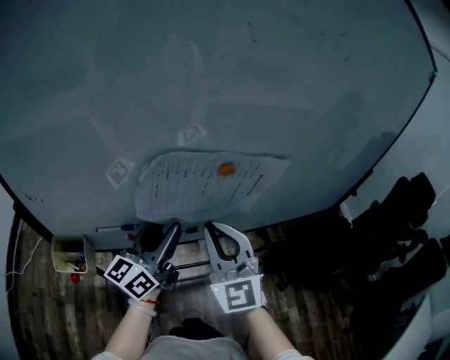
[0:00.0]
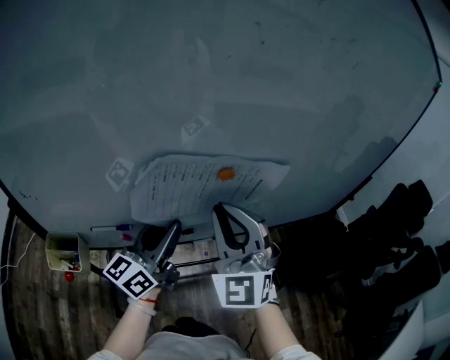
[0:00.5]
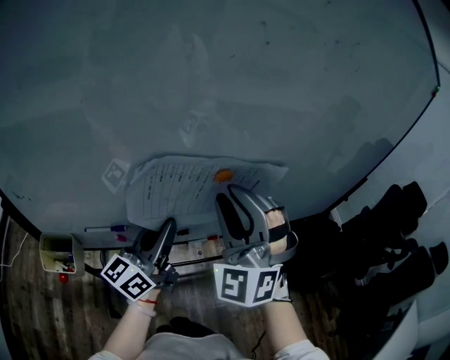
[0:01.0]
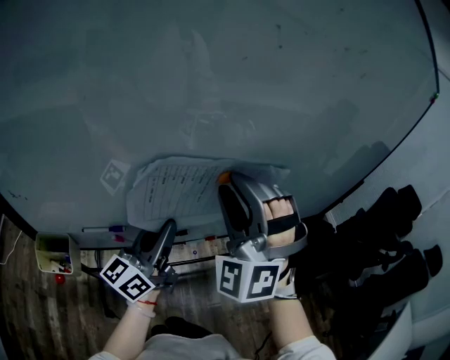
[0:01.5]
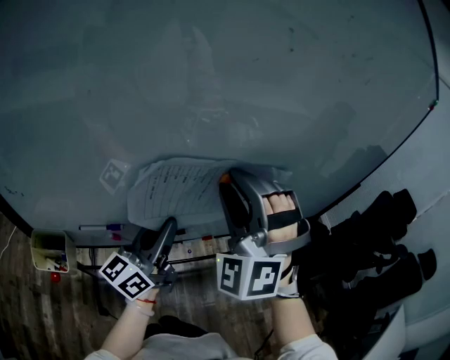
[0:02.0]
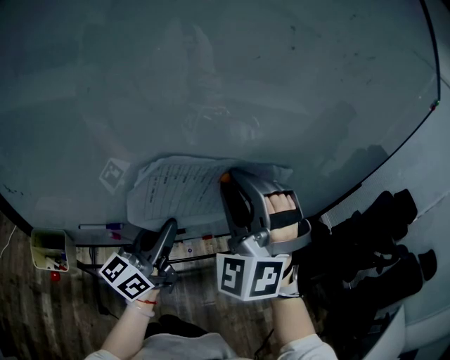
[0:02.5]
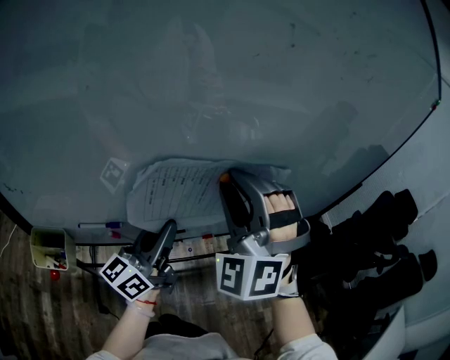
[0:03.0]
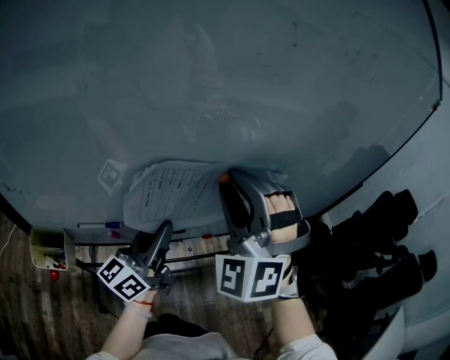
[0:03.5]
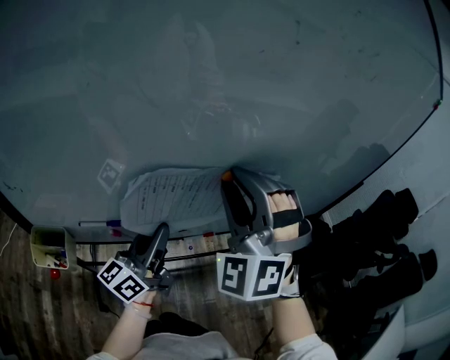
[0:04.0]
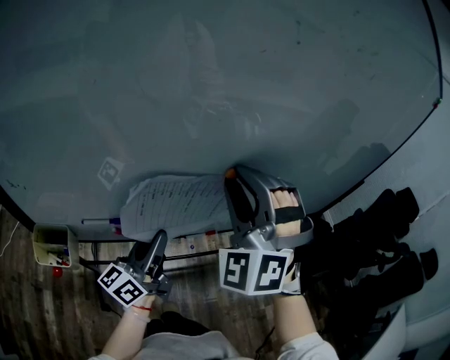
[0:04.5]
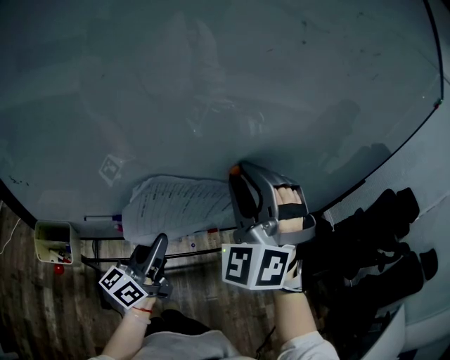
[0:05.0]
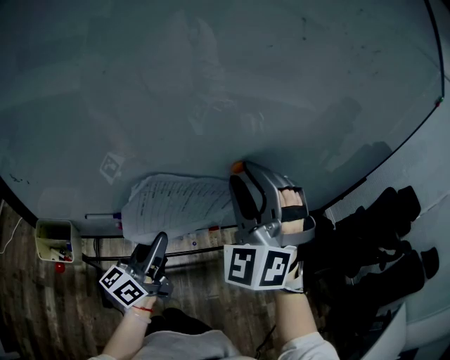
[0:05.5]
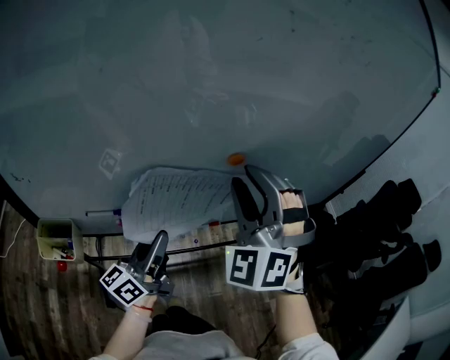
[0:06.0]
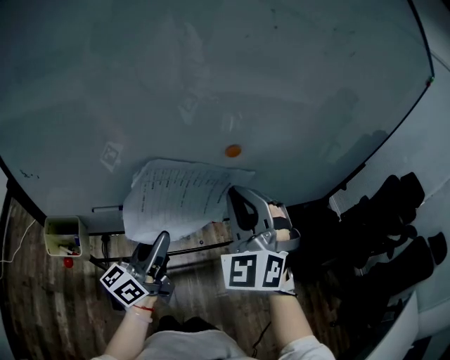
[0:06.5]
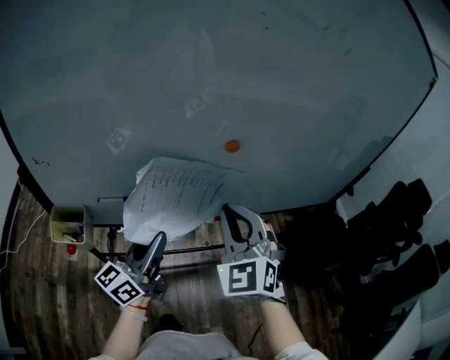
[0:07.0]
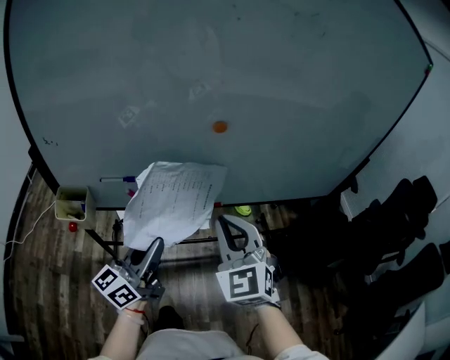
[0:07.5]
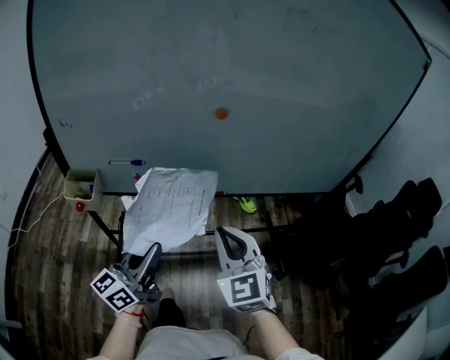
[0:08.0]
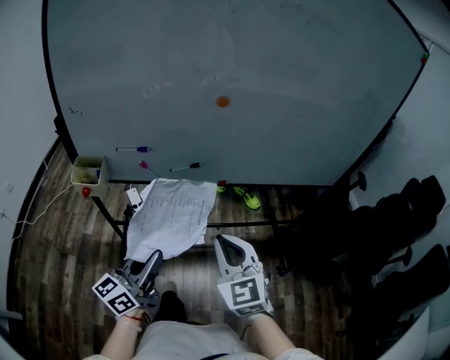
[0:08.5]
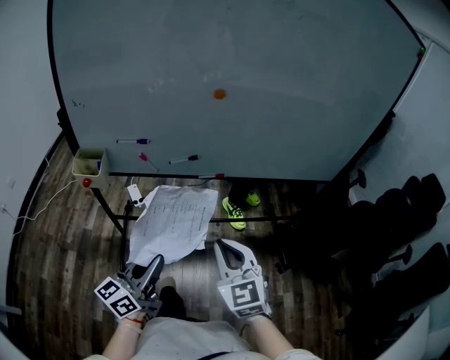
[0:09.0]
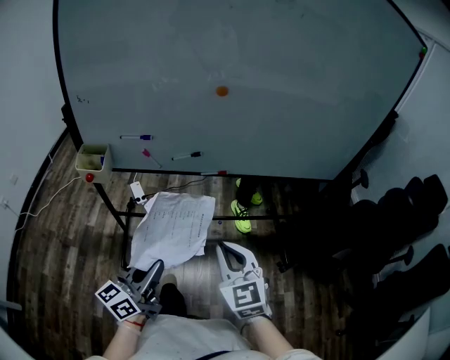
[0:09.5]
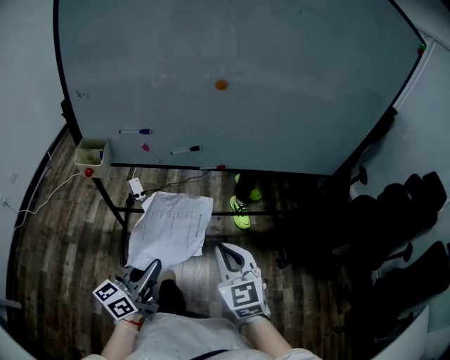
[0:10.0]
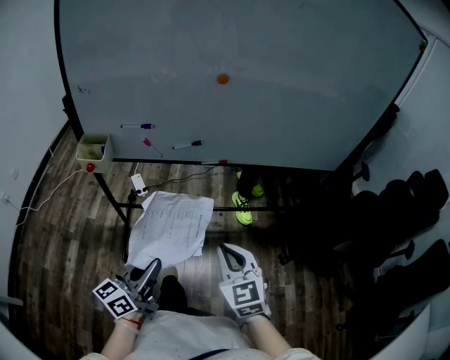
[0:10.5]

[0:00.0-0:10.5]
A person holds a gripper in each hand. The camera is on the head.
0:00.0 to 0:02.0: The right gripper travels upward and forward by about 10 cm, rotates around the line of its fingers by roughly 50 degrees, counterclockwise from behind, and opens; the left gripper closes its fingers.
0:02.0 to 0:04.0: There are only small adjustments of the grippers.
0:04.0 to 0:06.5: The left gripper travels backward by roughly 5 cm; the right gripper shifts by about 5 cm, and closes its fingers.
0:06.5 to 0:08.5: The left gripper moves backward, some 25 cm. Meanwhile the right gripper goes about 25 cm backward and downward, and swivels about 40 degrees.
0:08.5 to 0:10.5: Both grippers travel together backward and downward, some 10 cm.

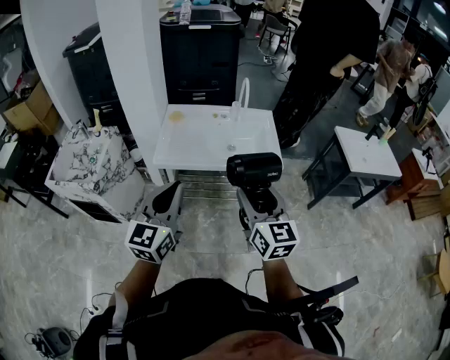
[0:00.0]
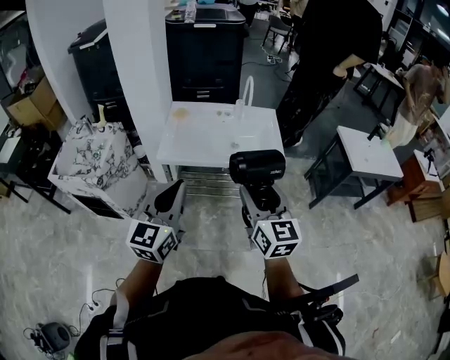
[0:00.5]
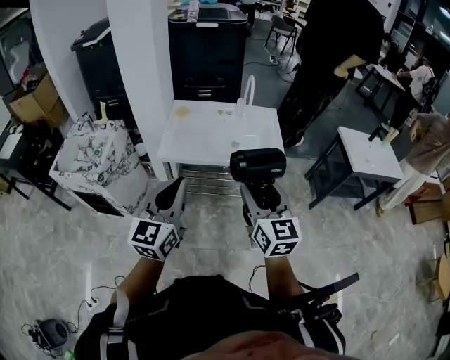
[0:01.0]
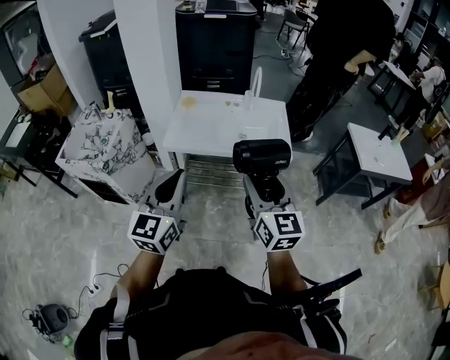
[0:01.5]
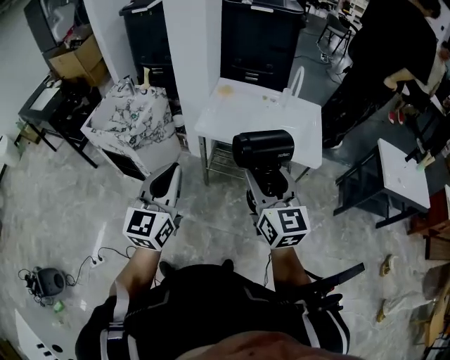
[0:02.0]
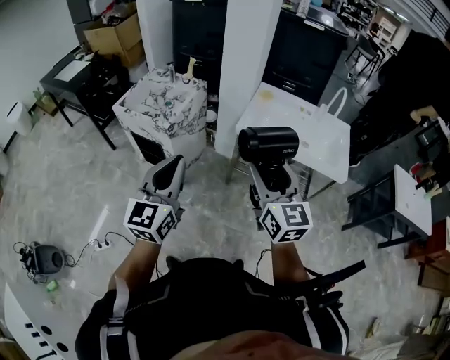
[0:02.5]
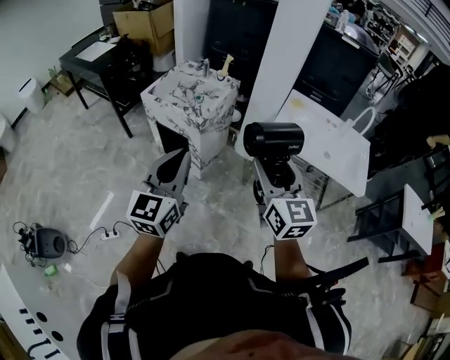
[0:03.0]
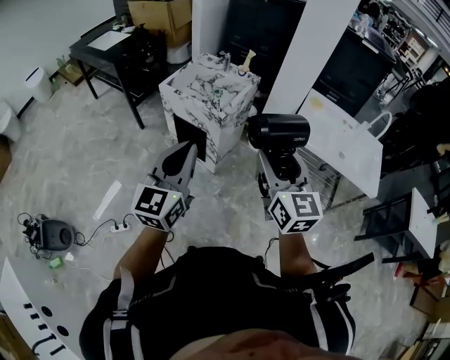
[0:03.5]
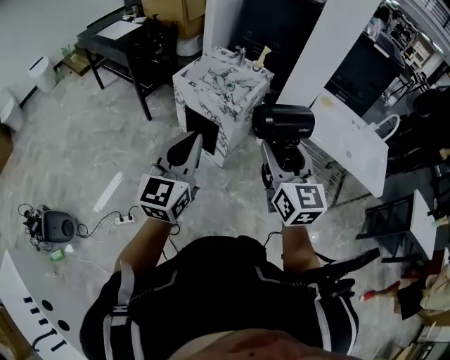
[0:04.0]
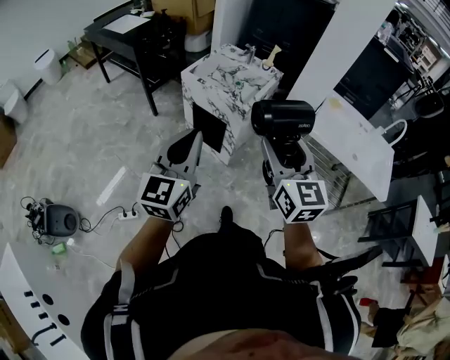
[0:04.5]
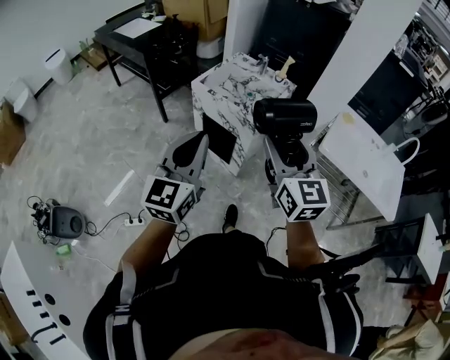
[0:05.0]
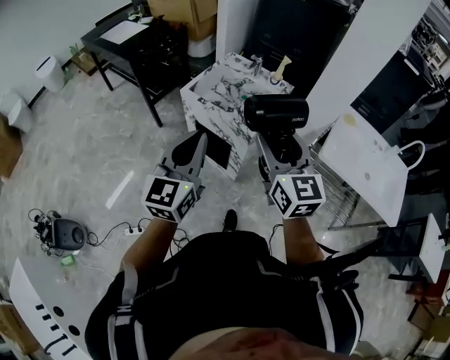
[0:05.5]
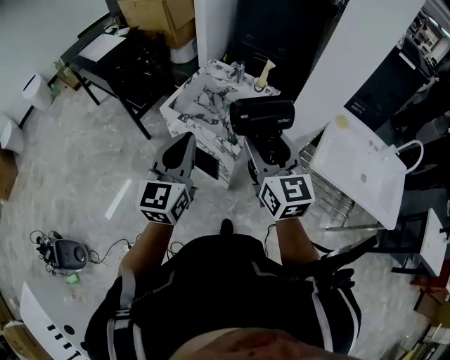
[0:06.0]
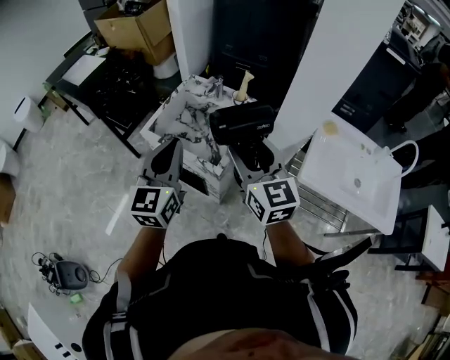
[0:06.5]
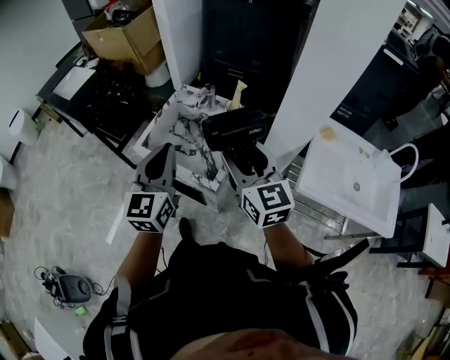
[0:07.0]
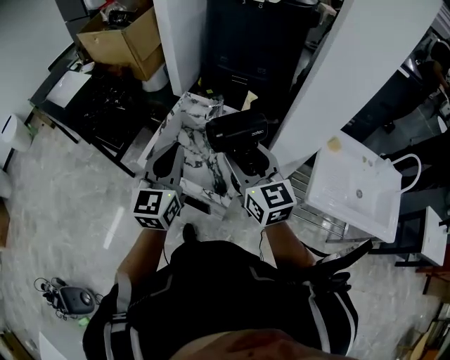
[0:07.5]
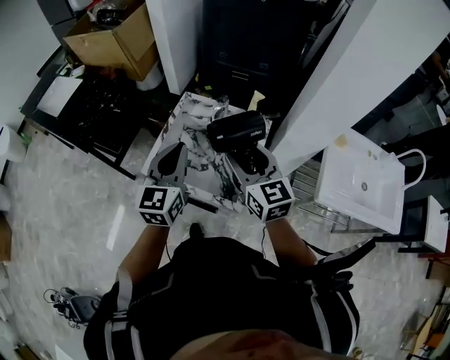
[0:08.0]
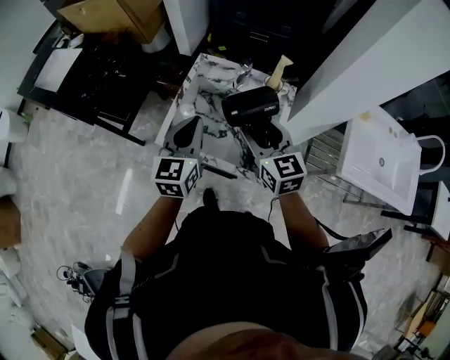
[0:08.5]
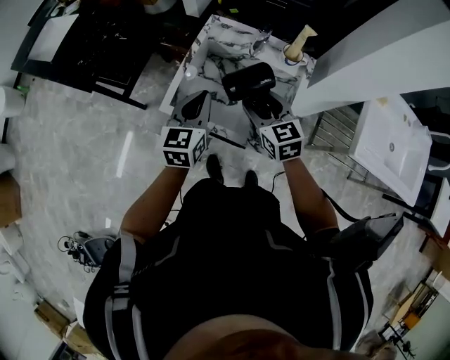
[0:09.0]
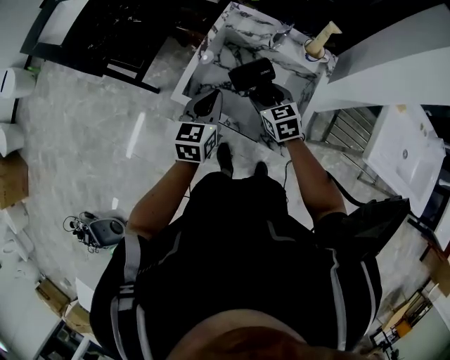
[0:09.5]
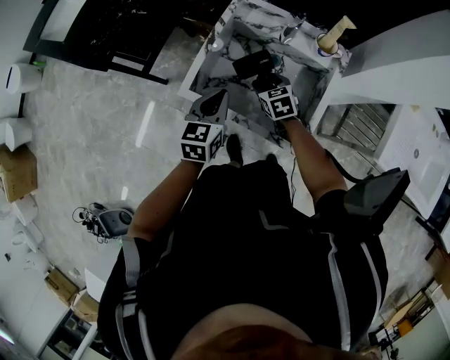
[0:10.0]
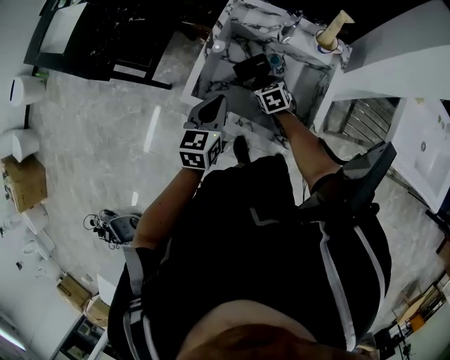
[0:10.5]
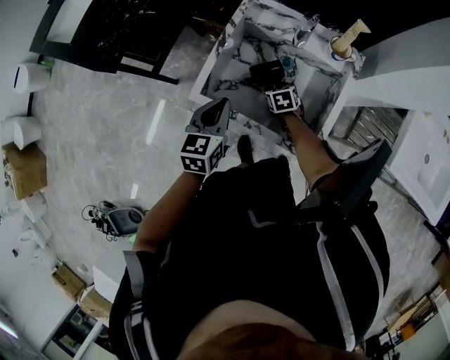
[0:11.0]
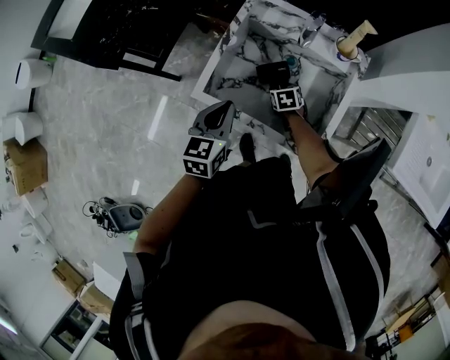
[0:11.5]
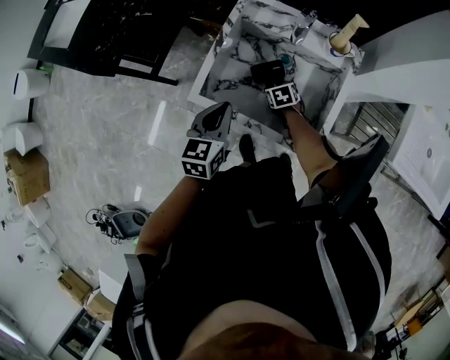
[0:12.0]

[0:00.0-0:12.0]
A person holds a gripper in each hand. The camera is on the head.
0:00.0 to 0:02.0: The right gripper travels to the left by roughly 5 cm; the left gripper heads to the left and backward, covering some 10 cm.
0:02.0 to 0:04.0: The two grippers travel together, to the left, approximately 40 cm.
0:04.0 to 0:06.0: Both grippers travel together forward, about 25 cm.
0:06.0 to 0:08.0: The grippers both shift forward by approximately 25 cm.
0:08.0 to 0:10.0: The right gripper shifts approximately 35 cm downward, and tilts its fingers roughly 40 degrees downward; the left gripper goes roughly 20 cm downward, and changes its angle by approximately 30 degrees.
0:10.0 to 0:12.0: The right gripper heads downward, covering some 15 cm.

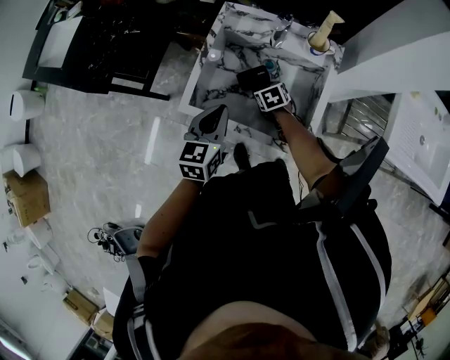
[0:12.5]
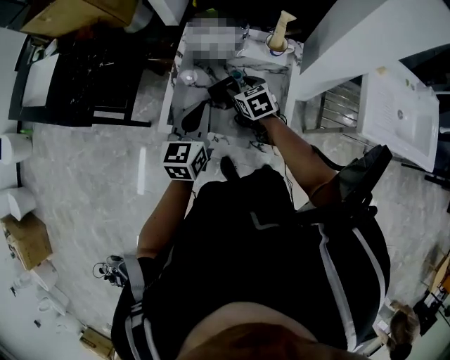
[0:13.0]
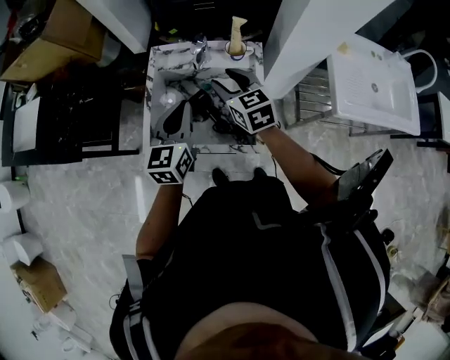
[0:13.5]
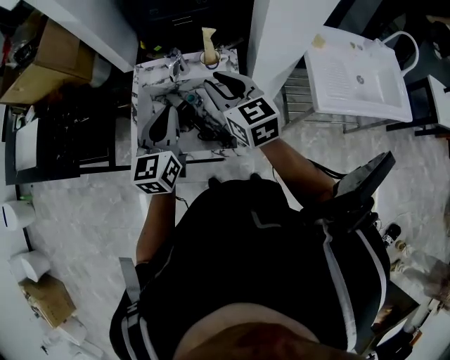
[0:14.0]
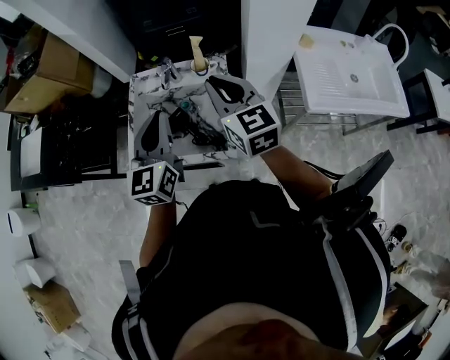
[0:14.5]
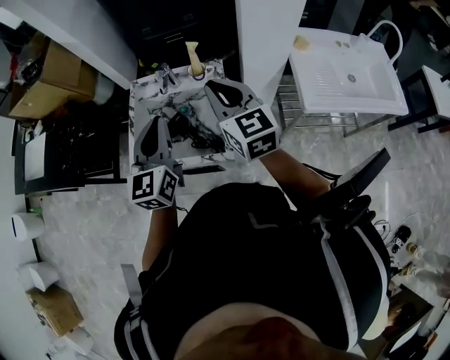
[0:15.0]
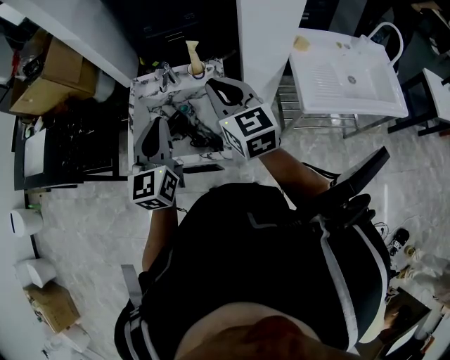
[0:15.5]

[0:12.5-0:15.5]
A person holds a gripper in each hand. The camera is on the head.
0:12.5 to 0:14.0: The left gripper travels upward and to the right by roughly 20 cm, and rotates some 20 degrees, while the right gripper moves upward, about 40 cm, tilts its fingers some 50 degrees upward, and closes its fingers.
0:14.0 to 0:15.5: The left gripper goes approximately 5 cm backward. The right gripper shifts some 10 cm to the right, upward and backward.

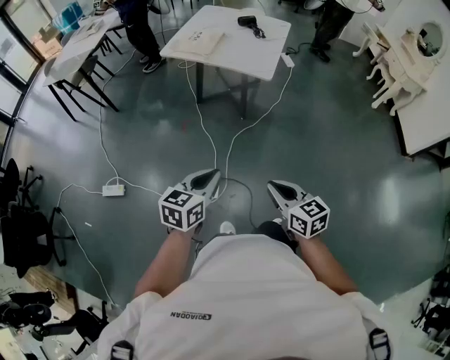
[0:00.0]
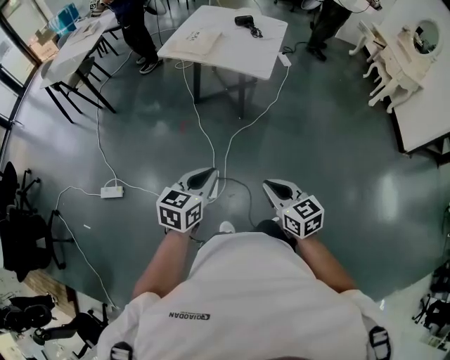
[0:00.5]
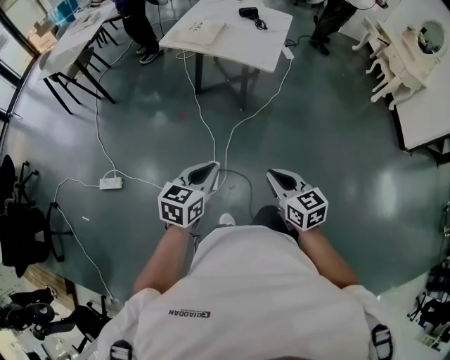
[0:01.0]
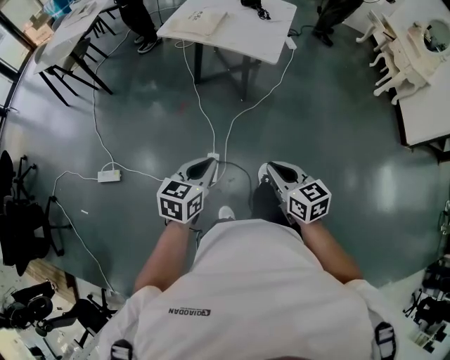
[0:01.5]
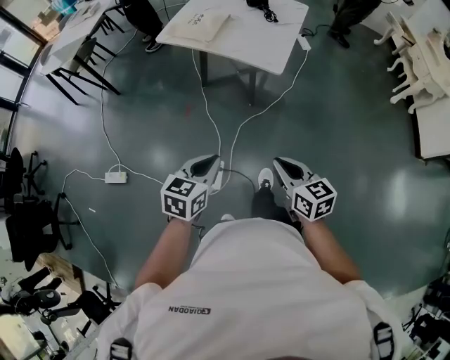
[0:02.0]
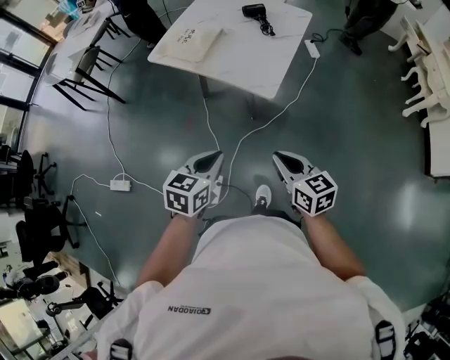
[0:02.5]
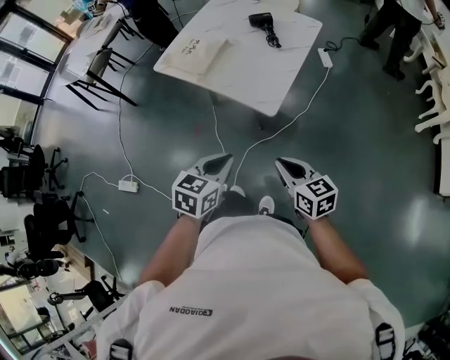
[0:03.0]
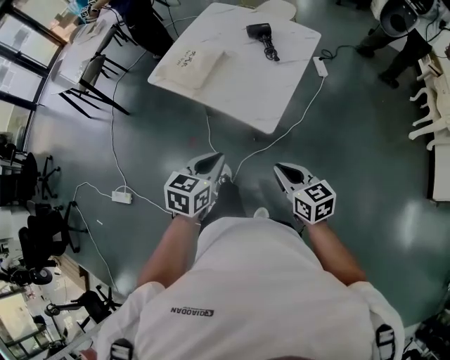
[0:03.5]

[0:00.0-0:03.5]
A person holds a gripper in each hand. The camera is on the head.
0:00.0 to 0:02.0: Both grippers travel together forward, approximately 15 cm.
0:02.0 to 0:03.5: The two grippers go approximately 30 cm forward and to the right.
